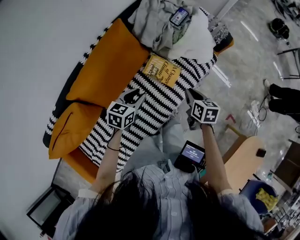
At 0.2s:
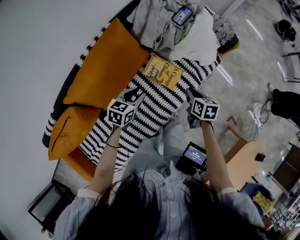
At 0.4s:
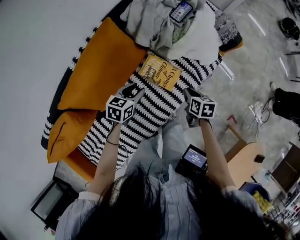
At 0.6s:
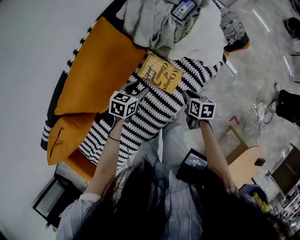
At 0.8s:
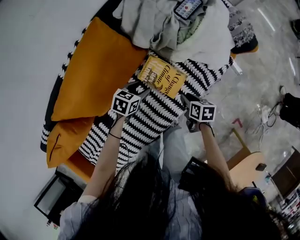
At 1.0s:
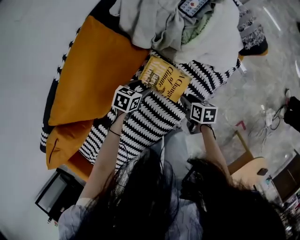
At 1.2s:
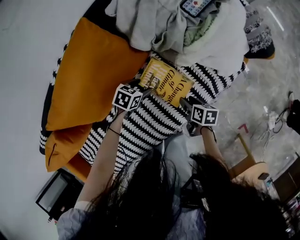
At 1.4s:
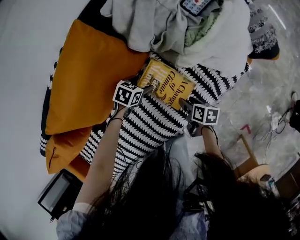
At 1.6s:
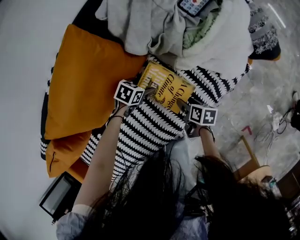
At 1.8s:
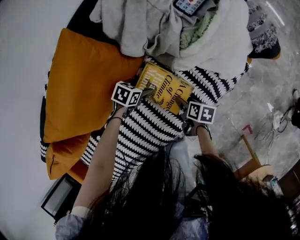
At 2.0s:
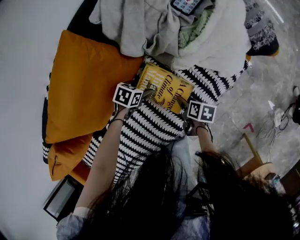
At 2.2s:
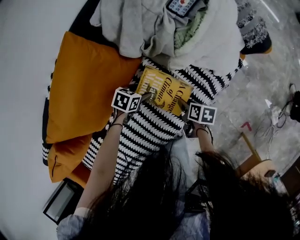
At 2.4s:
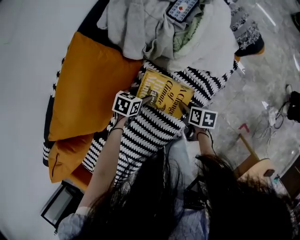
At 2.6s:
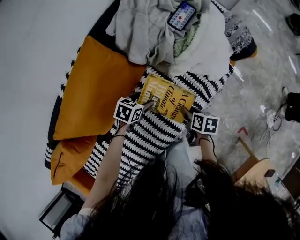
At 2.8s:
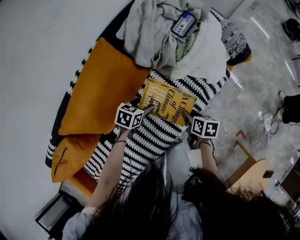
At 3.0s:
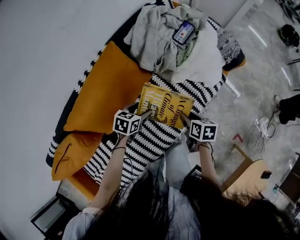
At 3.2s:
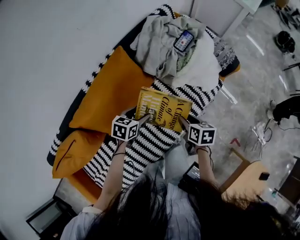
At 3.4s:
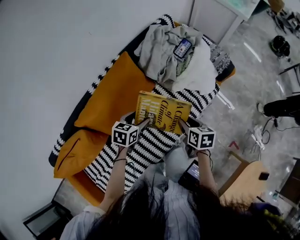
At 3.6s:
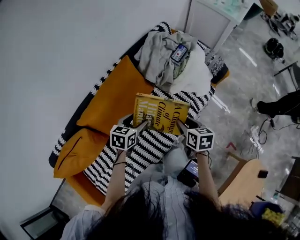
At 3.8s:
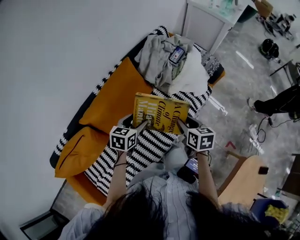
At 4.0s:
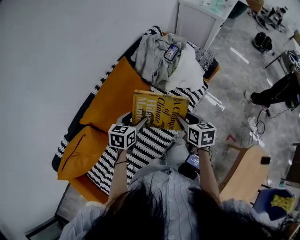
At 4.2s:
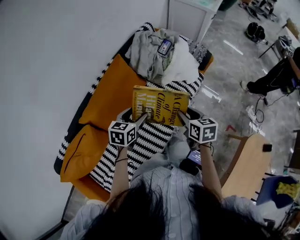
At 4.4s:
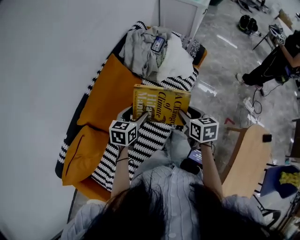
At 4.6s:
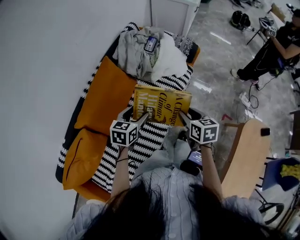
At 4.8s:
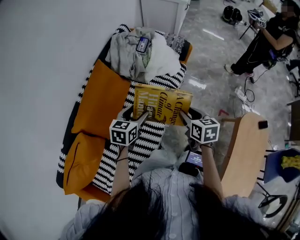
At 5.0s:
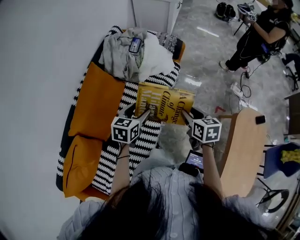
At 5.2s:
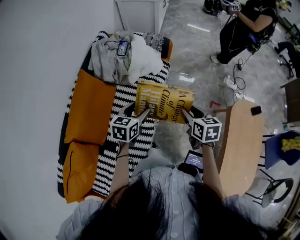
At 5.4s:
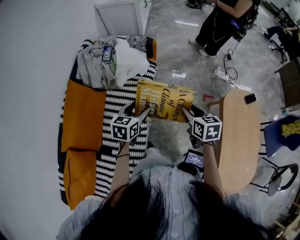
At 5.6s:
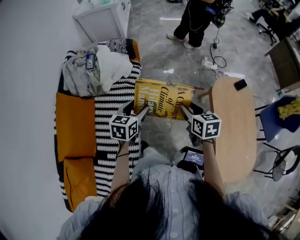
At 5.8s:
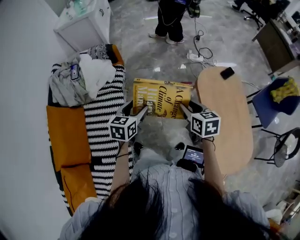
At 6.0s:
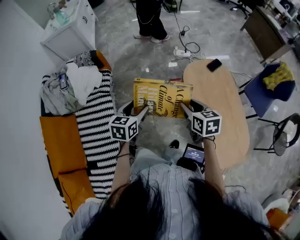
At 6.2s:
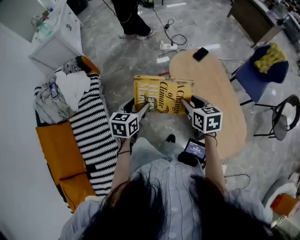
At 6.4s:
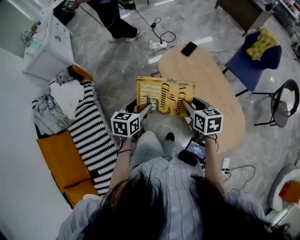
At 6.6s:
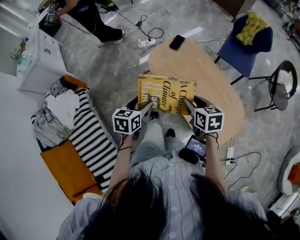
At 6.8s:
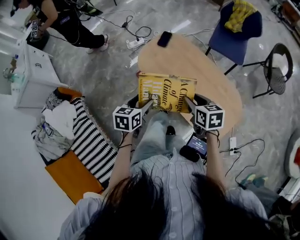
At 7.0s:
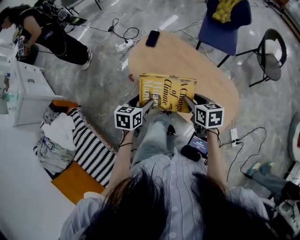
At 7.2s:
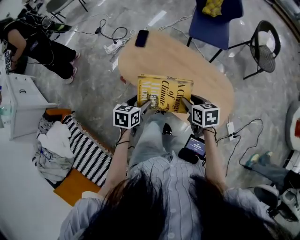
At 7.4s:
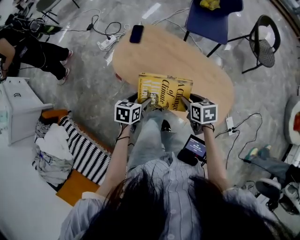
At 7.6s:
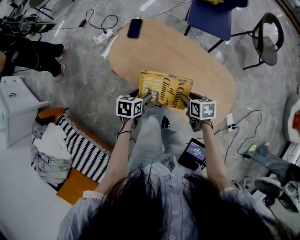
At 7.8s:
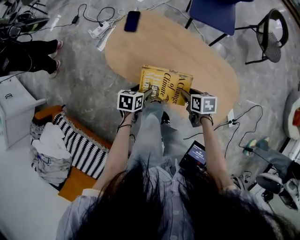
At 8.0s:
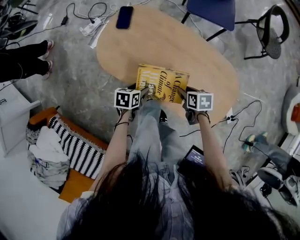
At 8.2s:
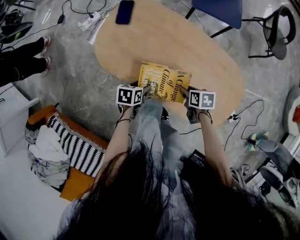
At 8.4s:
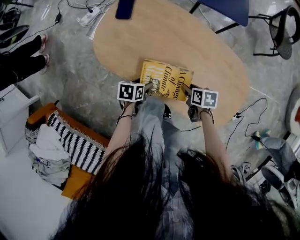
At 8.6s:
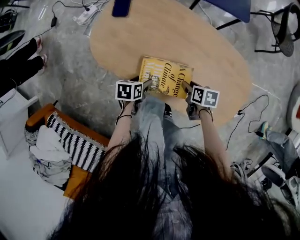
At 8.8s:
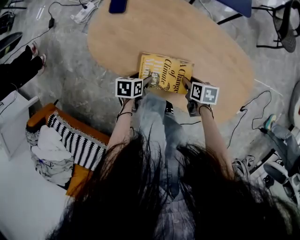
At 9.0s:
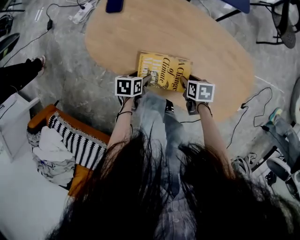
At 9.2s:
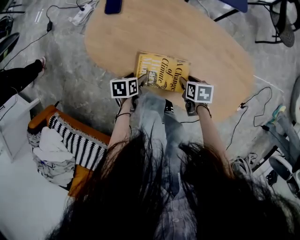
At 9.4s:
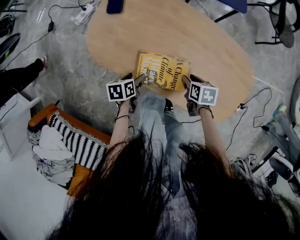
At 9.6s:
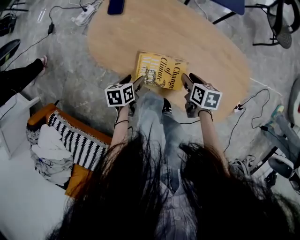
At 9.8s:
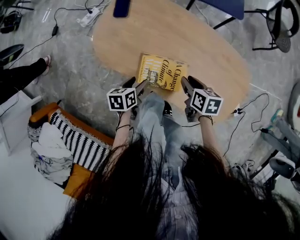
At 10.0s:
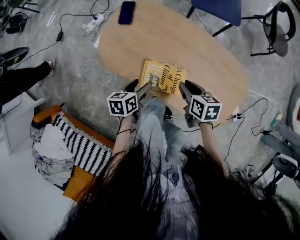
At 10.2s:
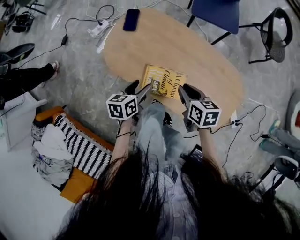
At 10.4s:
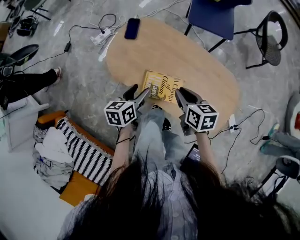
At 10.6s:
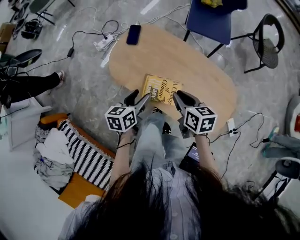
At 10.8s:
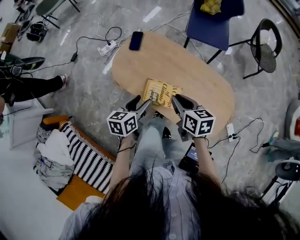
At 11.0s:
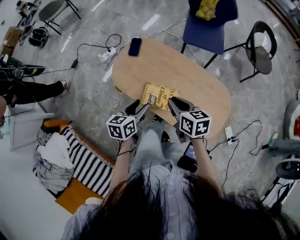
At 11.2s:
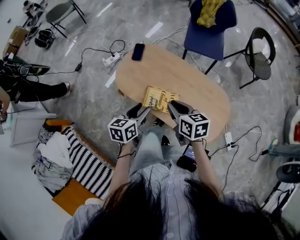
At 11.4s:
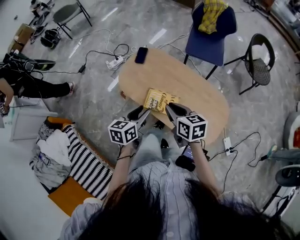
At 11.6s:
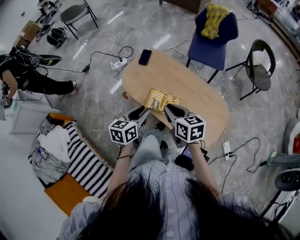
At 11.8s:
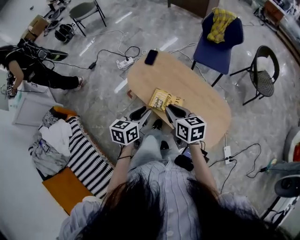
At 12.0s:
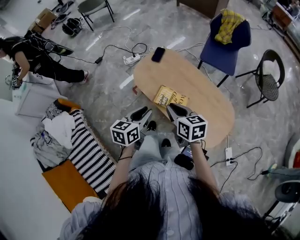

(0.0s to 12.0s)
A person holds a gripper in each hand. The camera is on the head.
0.0s - 1.6s: Both grippers move downward, some 35 cm. The right gripper rotates some 30 degrees, and opens up, while the left gripper swivels some 30 degrees, and opens up.
1.6s - 3.0s: The two grippers go roughly 25 cm upward.
3.0s - 4.4s: Both grippers travel together upward and backward, approximately 30 cm. The left gripper turns by roughly 20 degrees, while the right gripper turns by some 20 degrees.
4.4s - 6.0s: The two grippers travel together, about 50 cm. The left gripper rotates some 40 degrees. The right gripper swivels about 40 degrees.
6.0s - 7.6s: The left gripper changes place by approximately 40 cm, and rotates about 50 degrees. Meanwhile the right gripper shifts by some 40 cm, and swivels some 50 degrees.
7.6s - 9.0s: Both grippers move downward, about 20 cm.
9.0s - 10.4s: Both grippers travel together upward, approximately 25 cm. The left gripper turns by some 30 degrees. Meanwhile the right gripper changes its angle by approximately 30 degrees.
10.4s - 12.0s: The left gripper moves backward and upward, about 25 cm, and closes up; the right gripper travels upward, backward and to the left by about 20 cm, and turns by about 20 degrees.

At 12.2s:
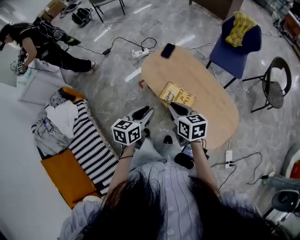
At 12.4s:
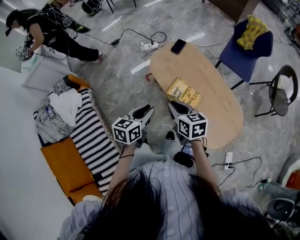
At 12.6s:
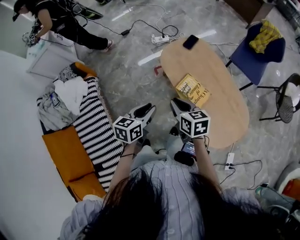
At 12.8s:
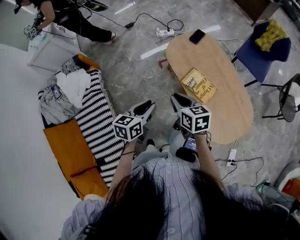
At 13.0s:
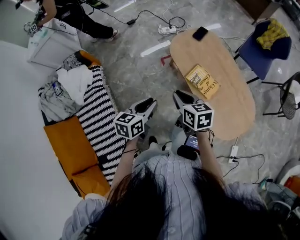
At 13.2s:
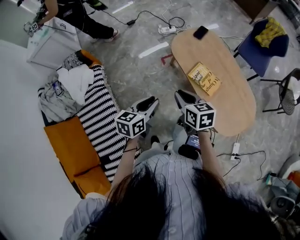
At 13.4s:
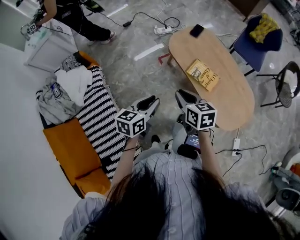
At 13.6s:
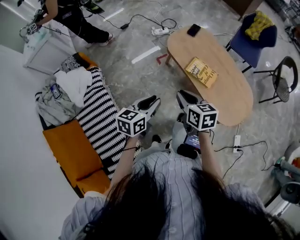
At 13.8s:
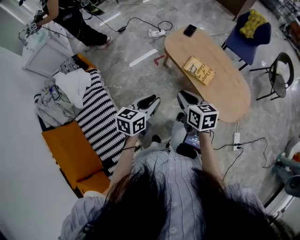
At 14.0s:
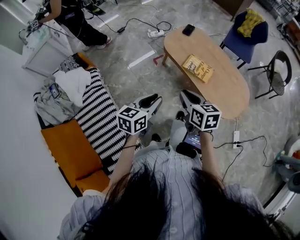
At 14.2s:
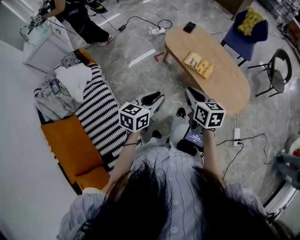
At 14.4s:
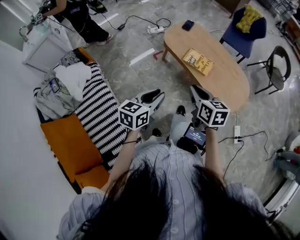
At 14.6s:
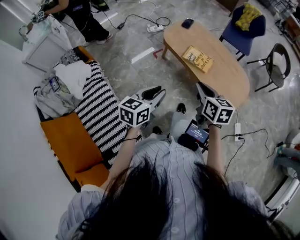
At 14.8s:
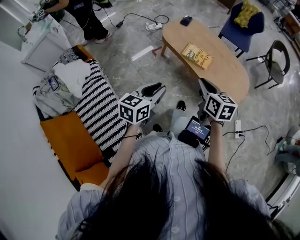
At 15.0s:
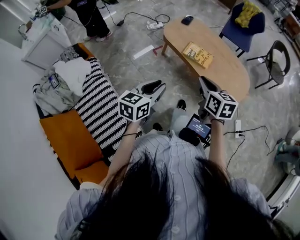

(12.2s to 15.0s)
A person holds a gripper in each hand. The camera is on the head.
12.2s - 13.6s: The grippers both shift to the left and backward by roughly 20 cm.
13.6s - 15.0s: The left gripper heads backward, covering some 10 cm. The right gripper shifts roughly 15 cm backward and to the right.

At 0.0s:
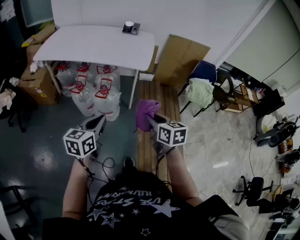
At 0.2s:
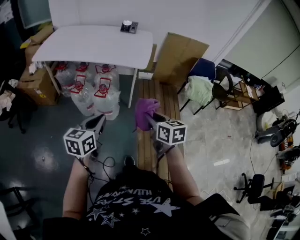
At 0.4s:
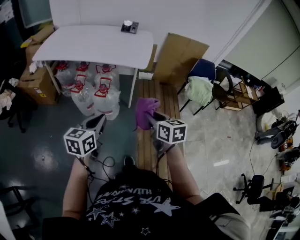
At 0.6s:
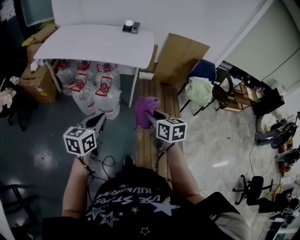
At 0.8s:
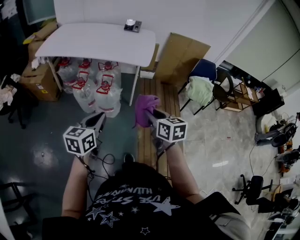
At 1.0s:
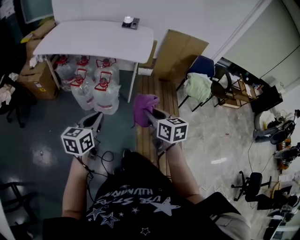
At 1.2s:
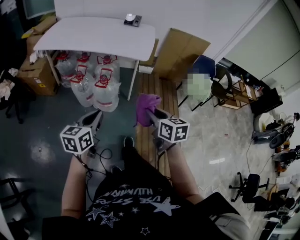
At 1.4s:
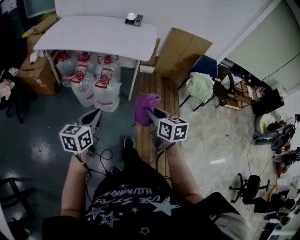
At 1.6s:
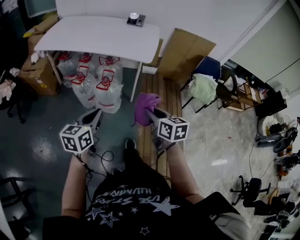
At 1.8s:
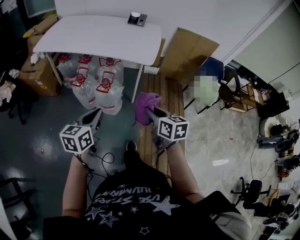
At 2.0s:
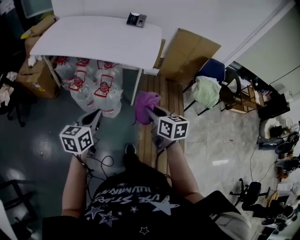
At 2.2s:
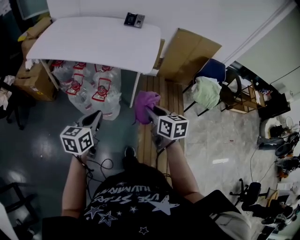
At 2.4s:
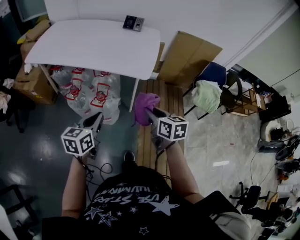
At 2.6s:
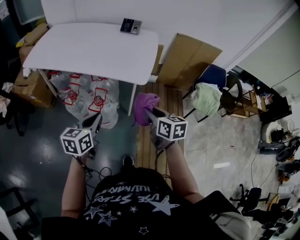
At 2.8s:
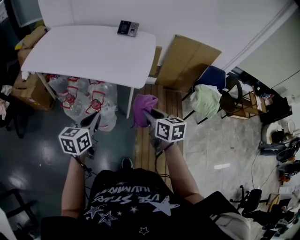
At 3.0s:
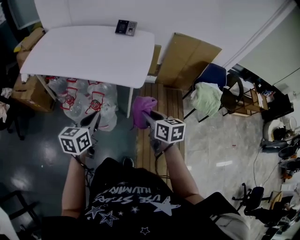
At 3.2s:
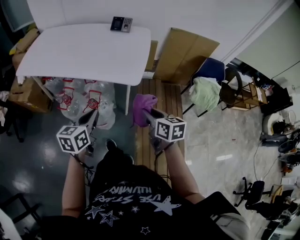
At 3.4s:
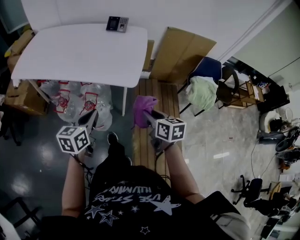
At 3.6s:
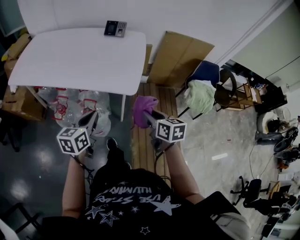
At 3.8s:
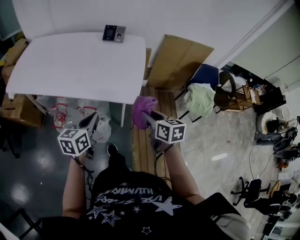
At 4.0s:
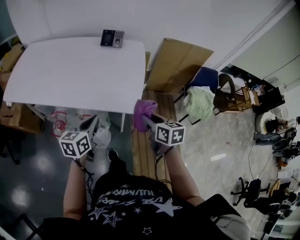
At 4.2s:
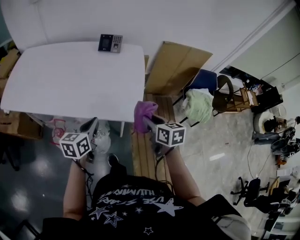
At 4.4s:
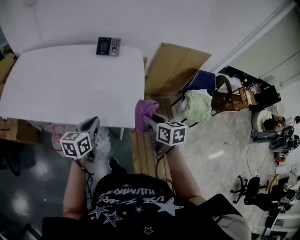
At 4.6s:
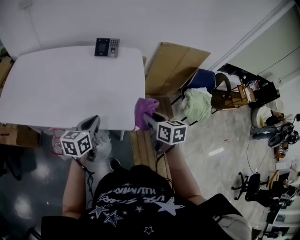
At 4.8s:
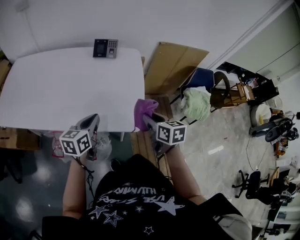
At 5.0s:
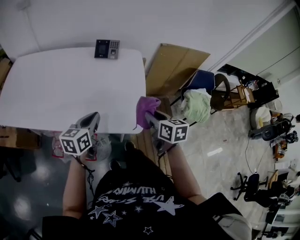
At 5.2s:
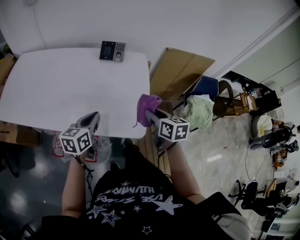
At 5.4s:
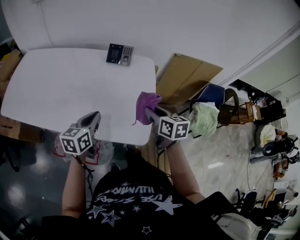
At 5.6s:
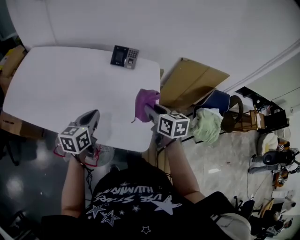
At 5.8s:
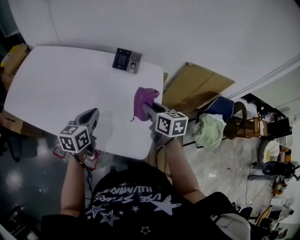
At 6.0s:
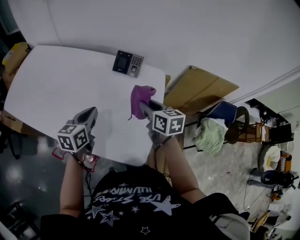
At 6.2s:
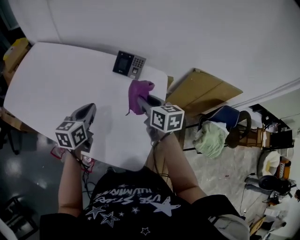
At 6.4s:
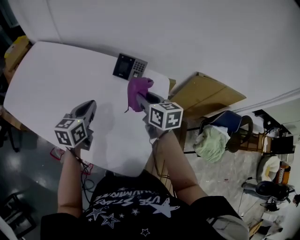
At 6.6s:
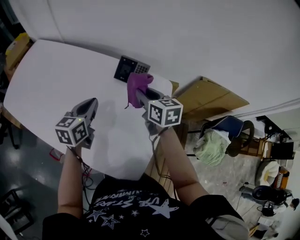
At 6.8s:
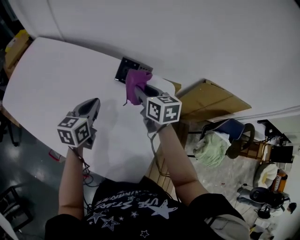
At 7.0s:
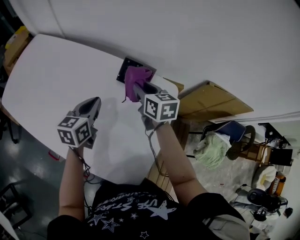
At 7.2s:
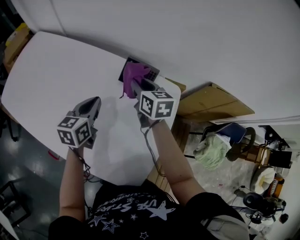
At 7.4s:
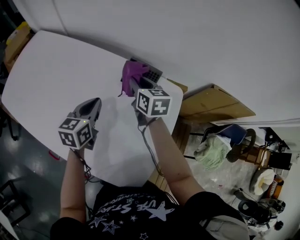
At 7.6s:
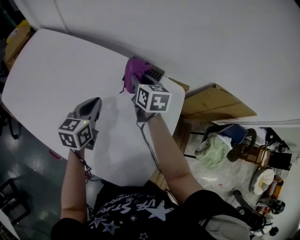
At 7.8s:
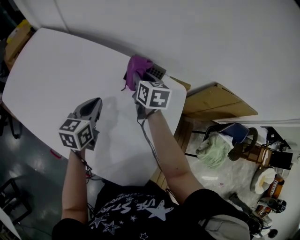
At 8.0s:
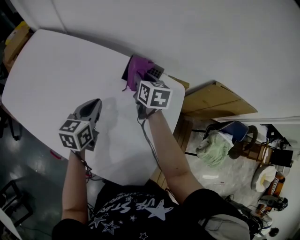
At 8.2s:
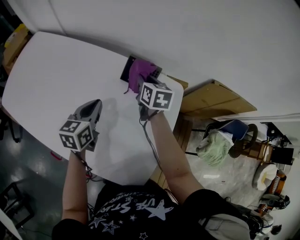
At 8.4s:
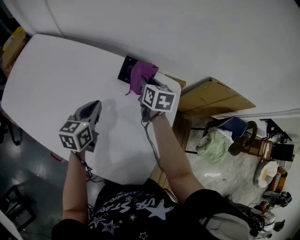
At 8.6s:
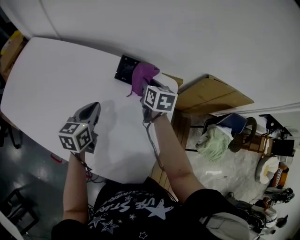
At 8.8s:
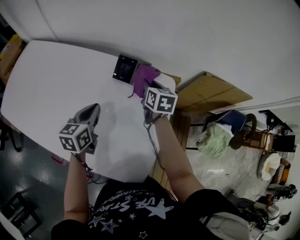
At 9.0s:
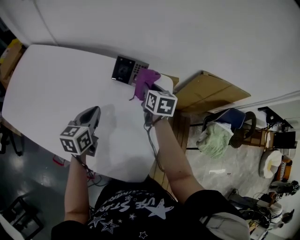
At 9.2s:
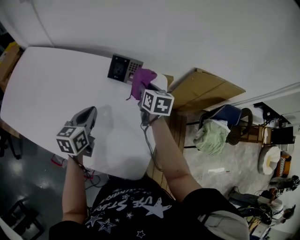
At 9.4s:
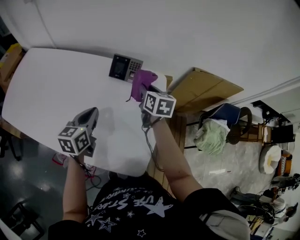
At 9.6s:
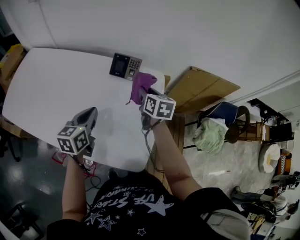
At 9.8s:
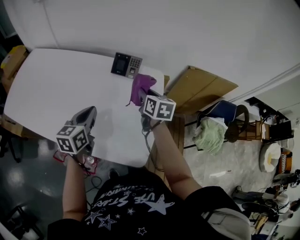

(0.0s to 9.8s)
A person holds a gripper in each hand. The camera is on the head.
0.0s - 1.4s: The grippers stay close to where they were, moving slightly.
1.4s - 2.8s: Both grippers move forward, about 25 cm.
2.8s - 4.2s: The two grippers go some 20 cm forward.
4.2s - 5.6s: Both grippers move forward, approximately 20 cm.
5.6s - 7.0s: Both grippers move forward, roughly 25 cm.
7.0s - 8.4s: The right gripper moves some 5 cm.
8.4s - 9.8s: The right gripper travels backward and to the right by some 15 cm. The left gripper goes roughly 15 cm backward and upward.
